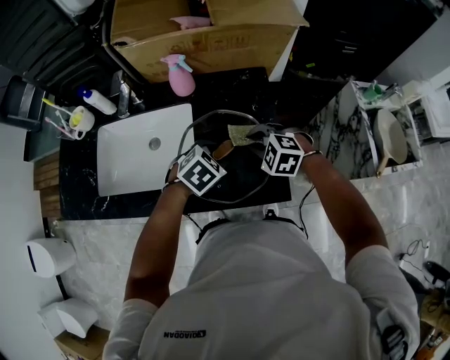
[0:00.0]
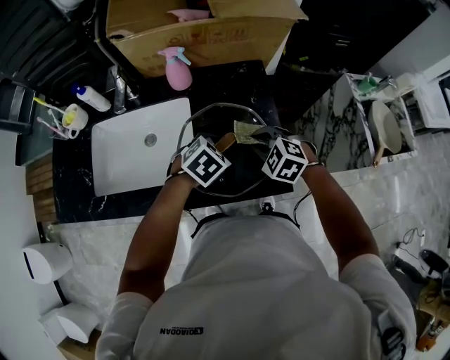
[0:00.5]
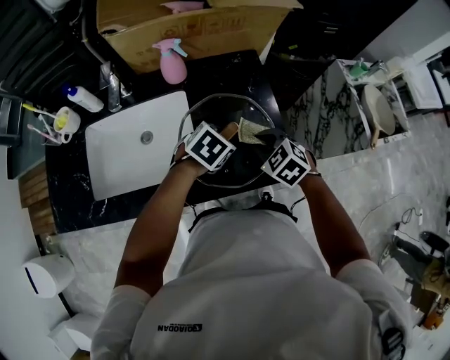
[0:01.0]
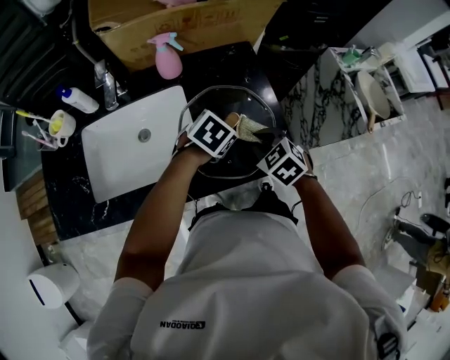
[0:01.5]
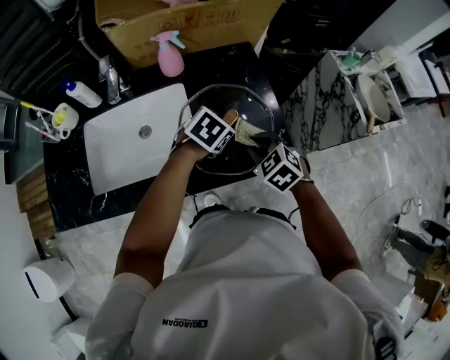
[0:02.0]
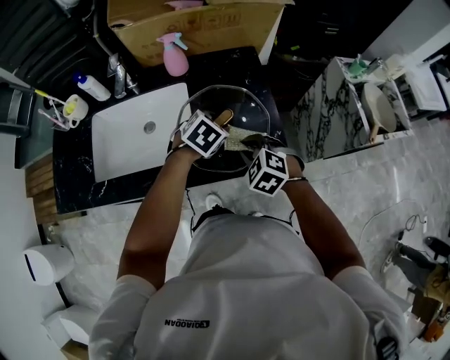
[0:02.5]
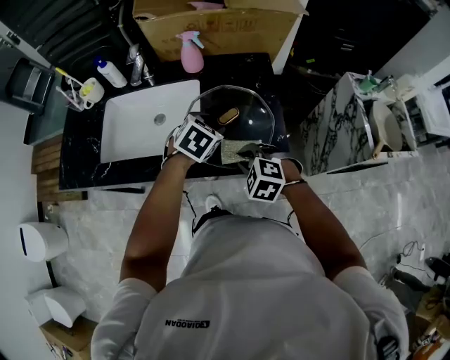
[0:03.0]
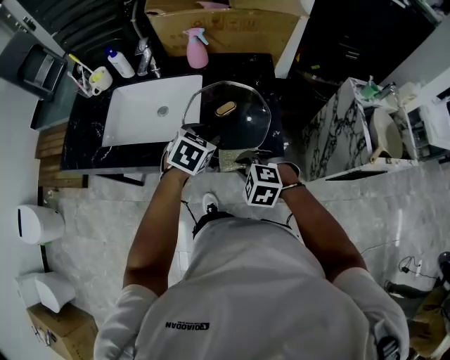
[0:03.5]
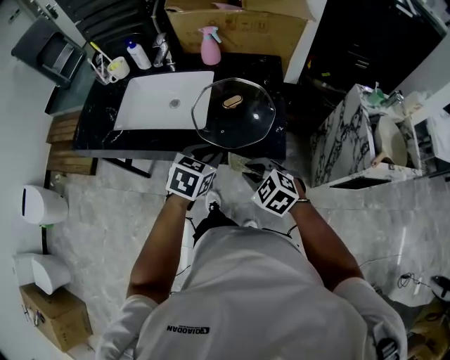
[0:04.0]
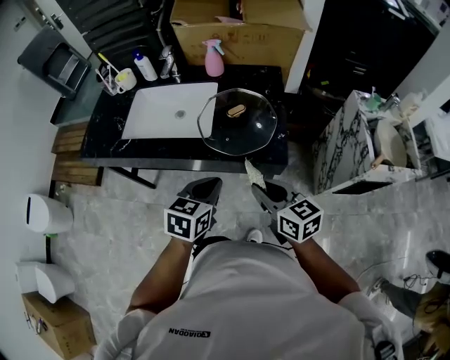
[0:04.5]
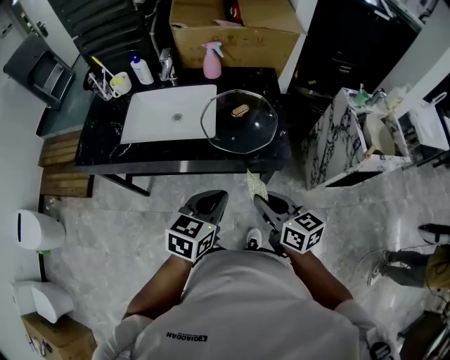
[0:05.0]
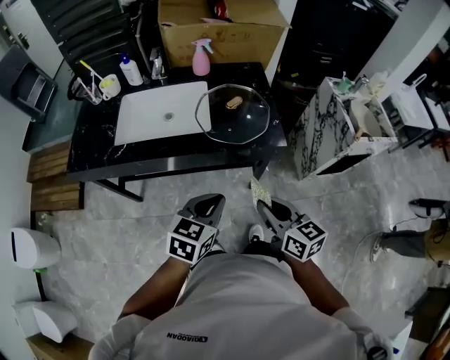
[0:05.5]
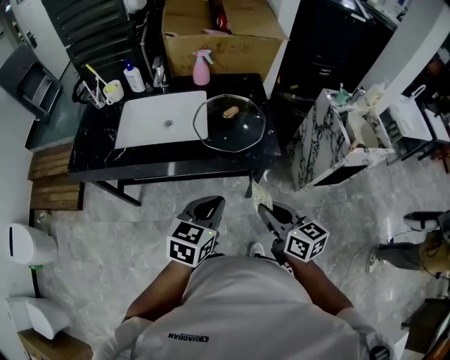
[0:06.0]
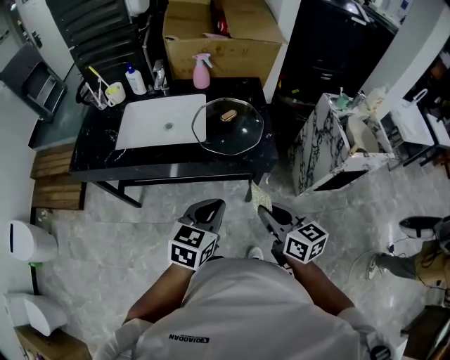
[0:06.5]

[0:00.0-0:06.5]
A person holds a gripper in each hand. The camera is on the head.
0:00.0 to 0:02.0: The right gripper goes approximately 10 cm backward, and changes its angle by about 40 degrees.
0:02.0 to 0:04.5: The right gripper moves approximately 25 cm, and angles its fingers upward, by roughly 30 degrees, while the left gripper changes place by about 30 cm, swivels about 50 degrees, and closes.
0:04.5 to 0:06.5: The grippers both shift backward by roughly 10 cm.

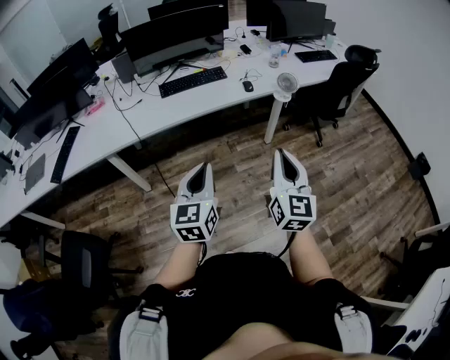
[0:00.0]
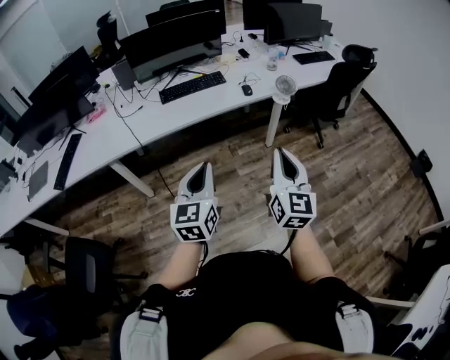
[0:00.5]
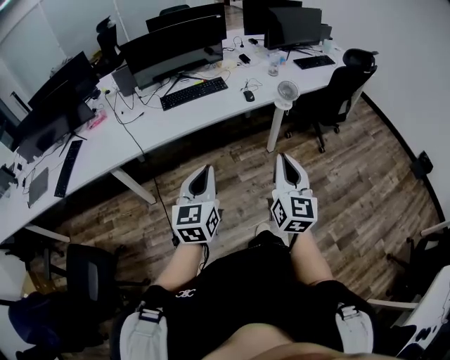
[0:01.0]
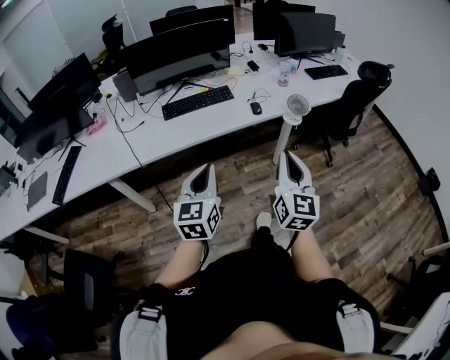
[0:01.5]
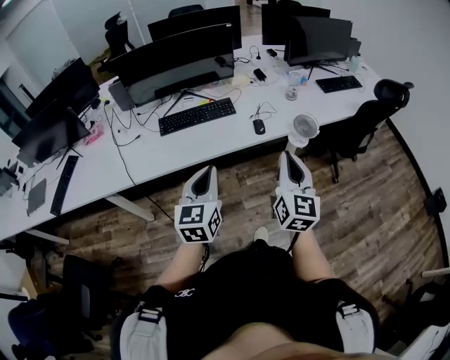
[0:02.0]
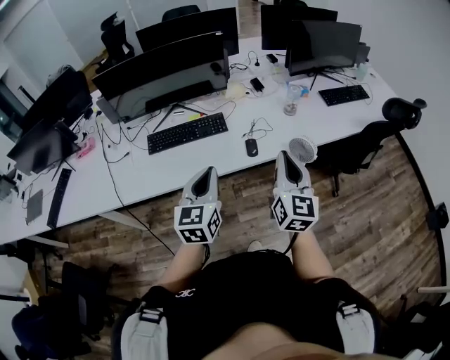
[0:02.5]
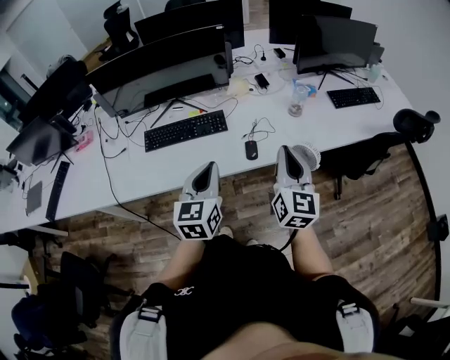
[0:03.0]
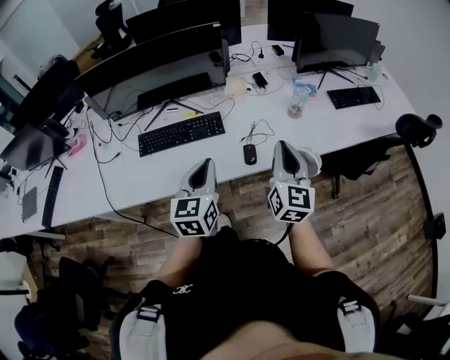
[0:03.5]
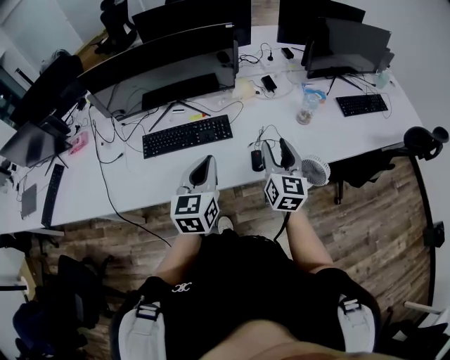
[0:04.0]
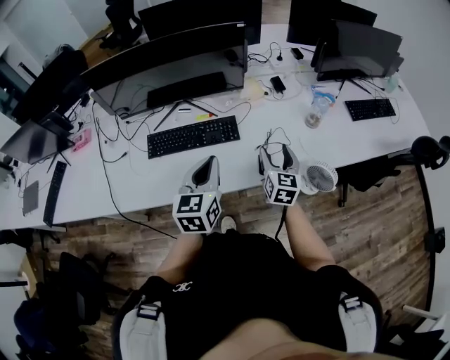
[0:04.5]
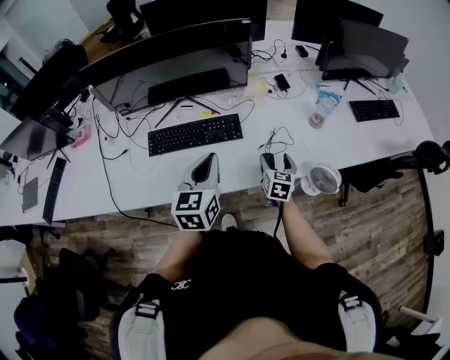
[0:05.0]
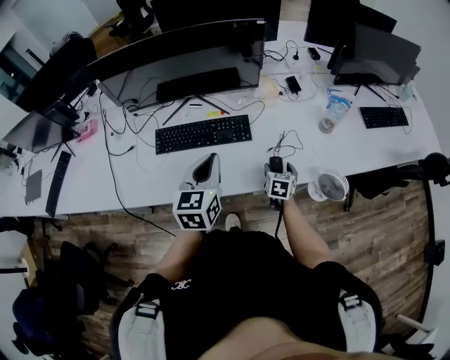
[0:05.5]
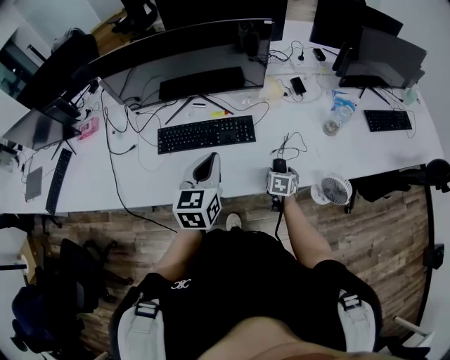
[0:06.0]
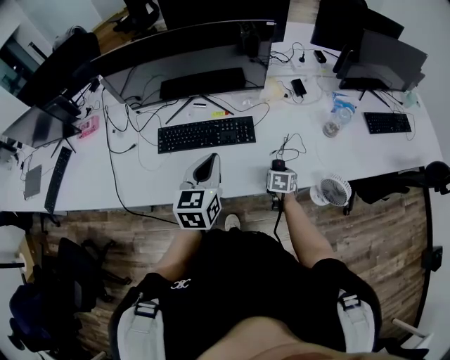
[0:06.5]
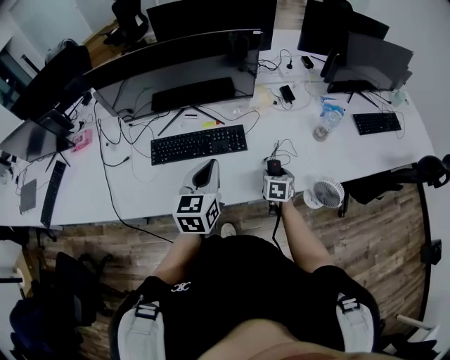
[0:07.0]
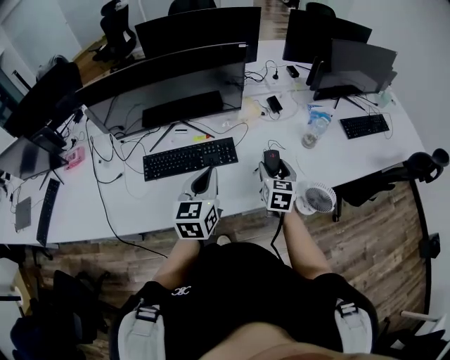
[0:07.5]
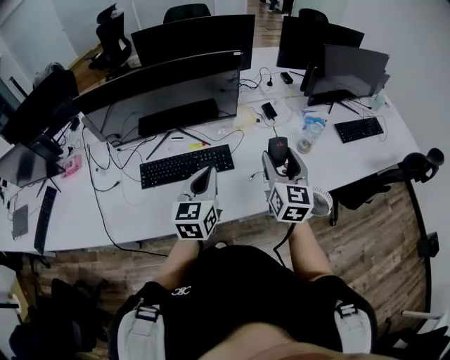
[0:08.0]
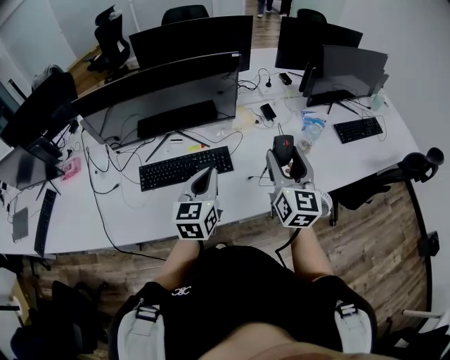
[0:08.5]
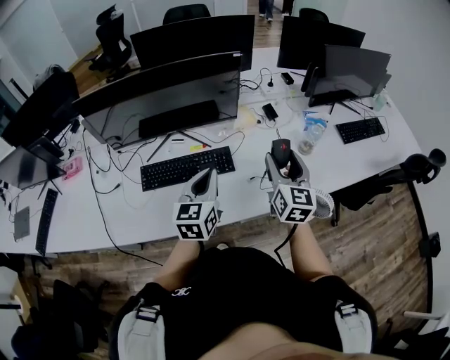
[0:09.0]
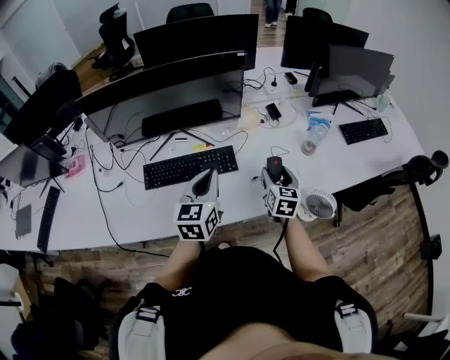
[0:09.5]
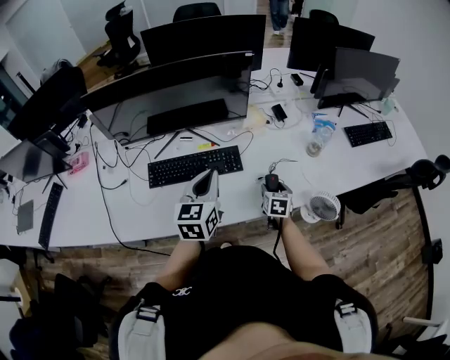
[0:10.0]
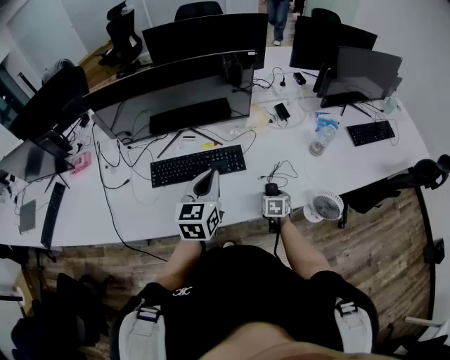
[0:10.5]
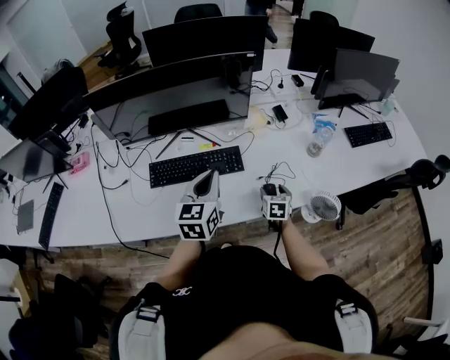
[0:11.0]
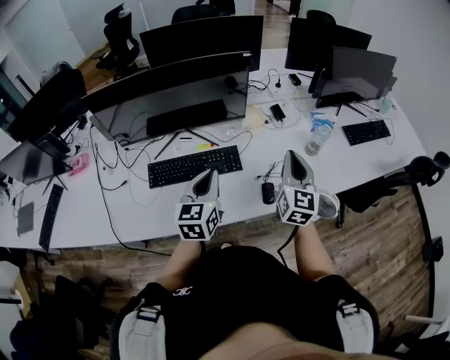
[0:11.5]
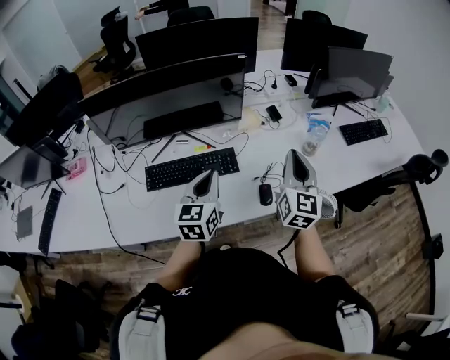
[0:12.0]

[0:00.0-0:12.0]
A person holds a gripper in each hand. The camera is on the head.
0:00.0 to 0:02.0: Both grippers travel together forward, approximately 30 cm.
0:02.0 to 0:04.0: Both grippers travel together forward, roughly 30 cm. The right gripper opens up.
0:04.0 to 0:06.0: The left gripper goes roughly 10 cm to the left and forward. The right gripper moves downward, roughly 30 cm, tips its fingers downward by approximately 50 degrees, and opens.
0:06.0 to 0:08.0: The right gripper is displaced upward by some 35 cm, and angles its fingers upward, by roughly 50 degrees. Meanwhile the left gripper moves approximately 5 cm.
0:08.0 to 0:10.0: The right gripper is displaced downward by approximately 30 cm, and angles its fingers downward, by roughly 40 degrees.
0:10.0 to 0:12.0: The right gripper is displaced upward by approximately 30 cm, points its fingers approximately 40 degrees further upward, and closes.

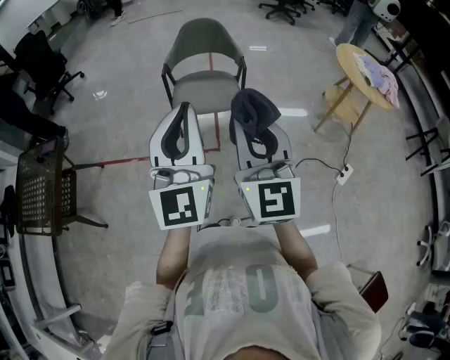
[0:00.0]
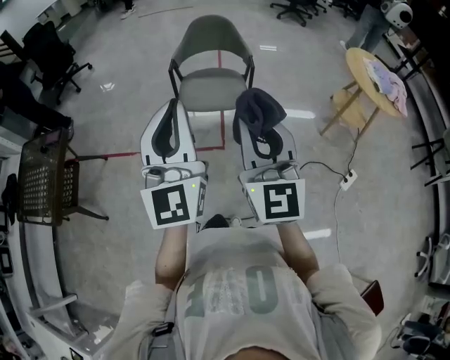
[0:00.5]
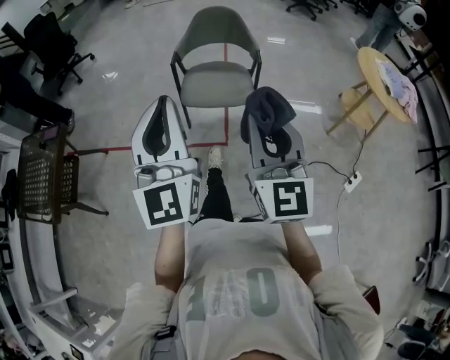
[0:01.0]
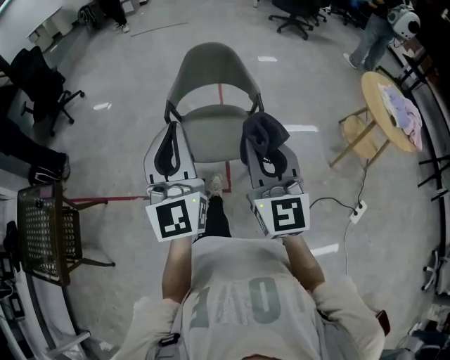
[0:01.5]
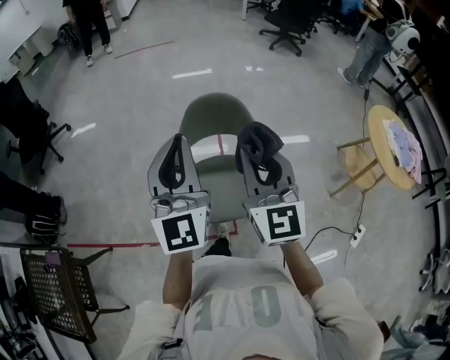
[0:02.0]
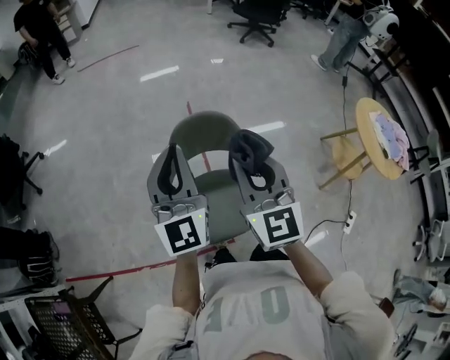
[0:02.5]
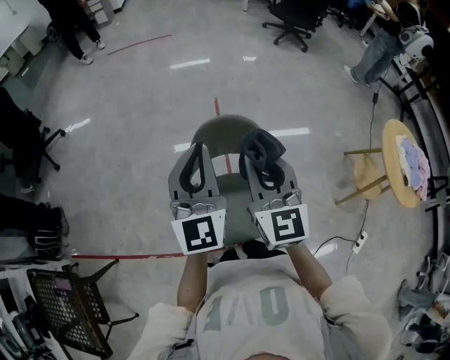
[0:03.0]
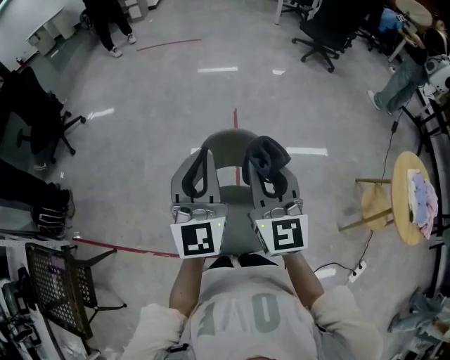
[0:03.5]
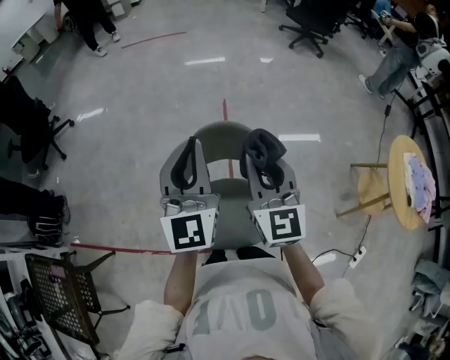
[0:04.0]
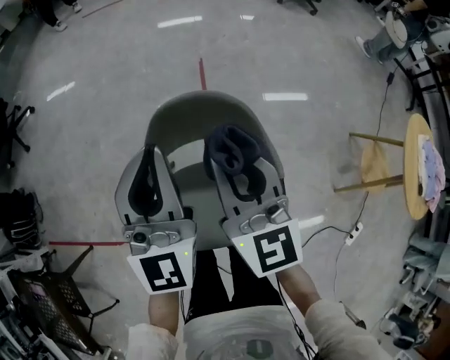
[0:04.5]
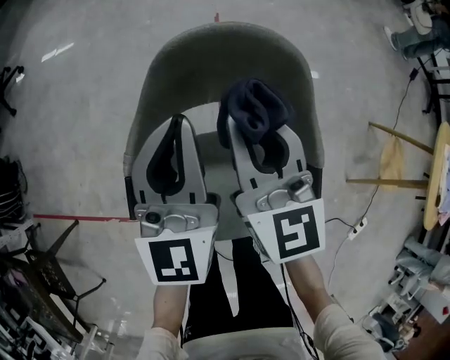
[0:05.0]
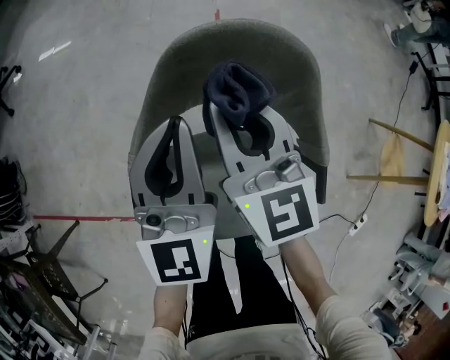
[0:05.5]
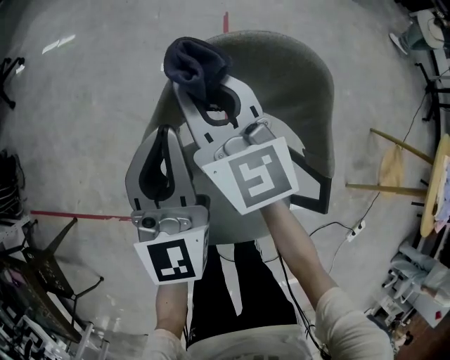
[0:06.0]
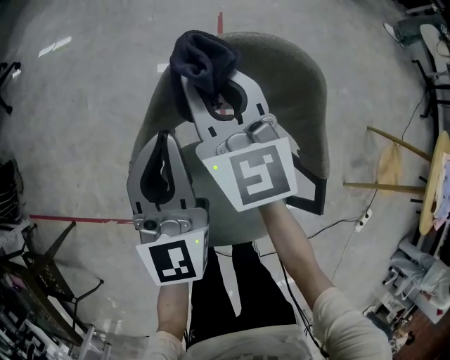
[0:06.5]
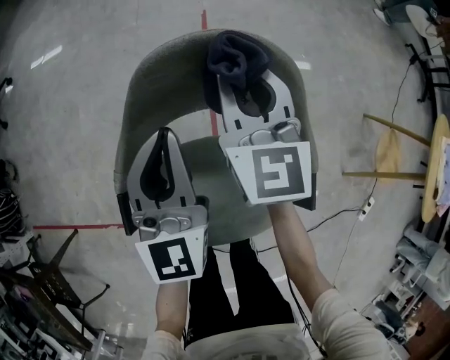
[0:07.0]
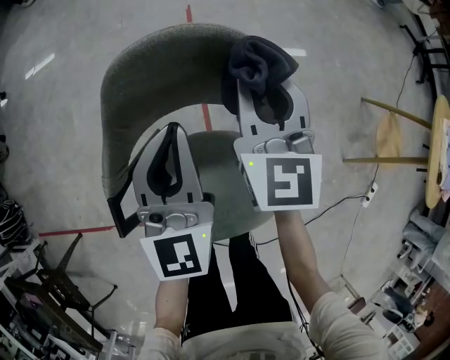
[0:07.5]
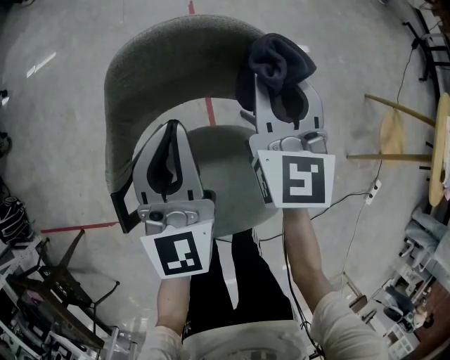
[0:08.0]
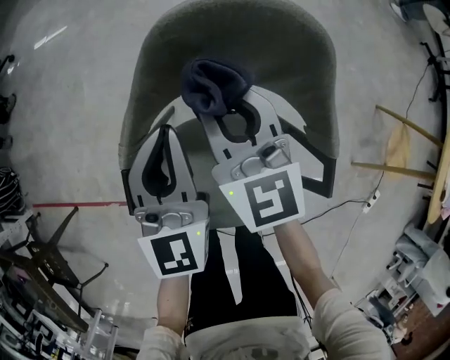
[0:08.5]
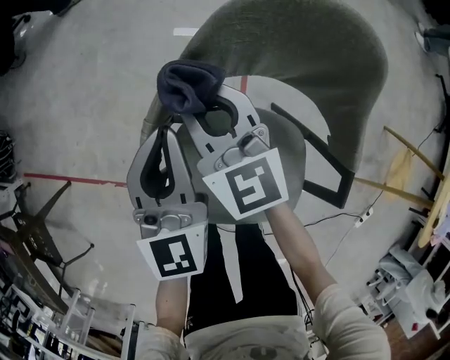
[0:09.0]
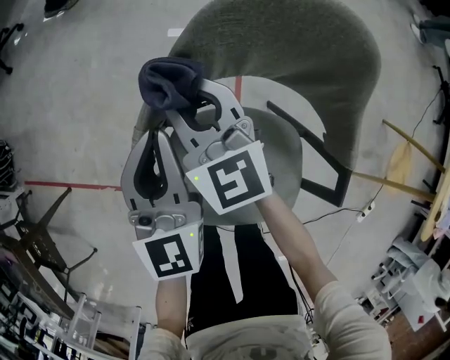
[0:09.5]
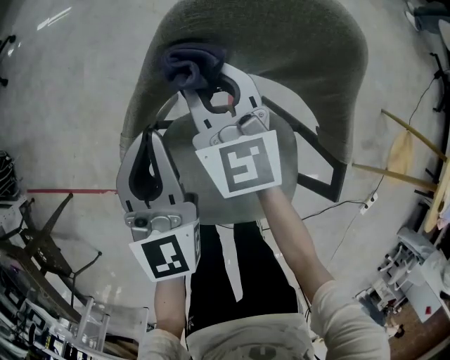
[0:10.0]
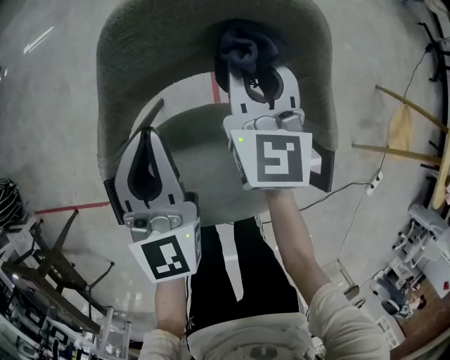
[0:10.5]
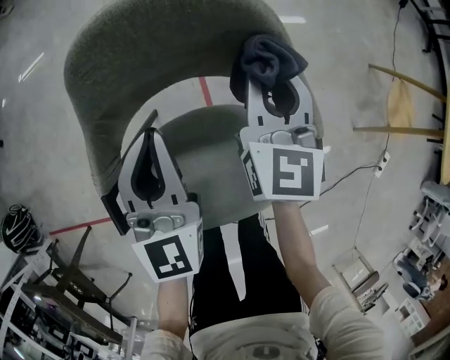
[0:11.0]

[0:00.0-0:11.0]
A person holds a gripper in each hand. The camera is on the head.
0:00.0 to 0:02.0: The two grippers travel together, forward, approximately 50 cm.
0:02.0 to 0:03.5: Both grippers move forward, approximately 20 cm.
0:03.5 to 0:05.5: The grippers both shift downward by about 30 cm.
0:05.5 to 0:07.5: The left gripper heads to the right, covering approximately 10 cm; the right gripper is displaced to the right by some 15 cm, and turns by some 20 degrees.
0:07.5 to 0:09.0: The right gripper moves about 25 cm, and turns by roughly 40 degrees; the left gripper ends up about 15 cm from where it was.
0:09.0 to 0:11.0: The left gripper moves about 15 cm, while the right gripper moves approximately 30 cm, and changes its angle by some 50 degrees.
